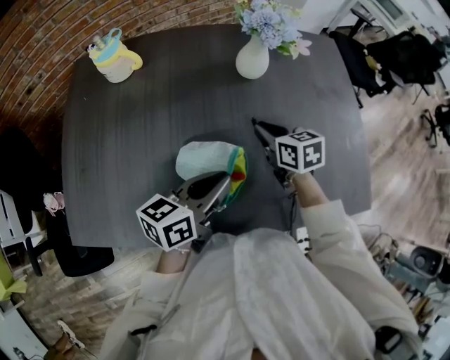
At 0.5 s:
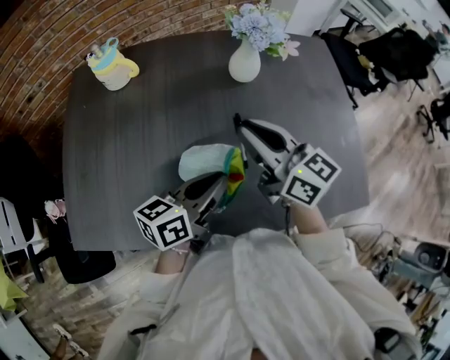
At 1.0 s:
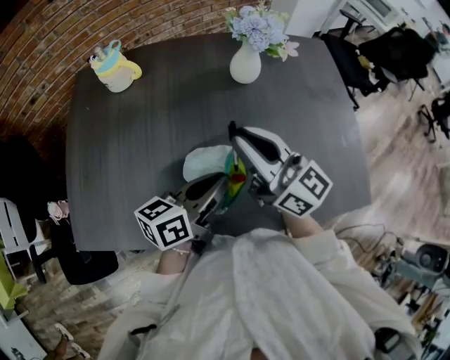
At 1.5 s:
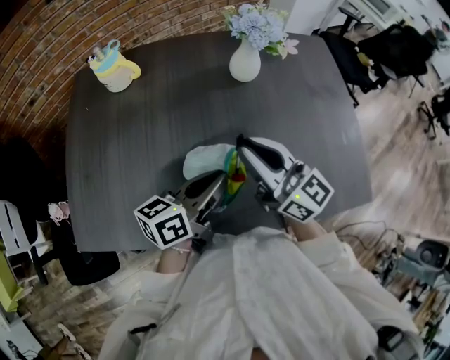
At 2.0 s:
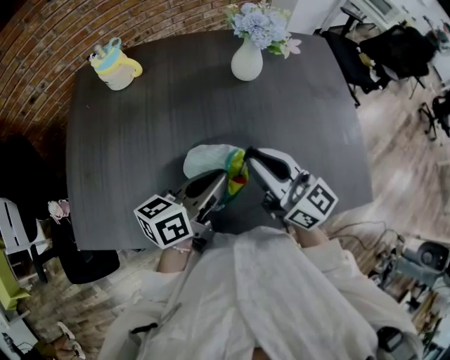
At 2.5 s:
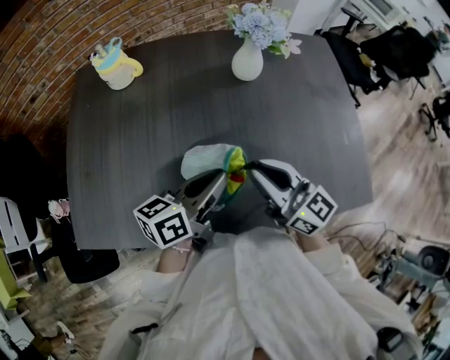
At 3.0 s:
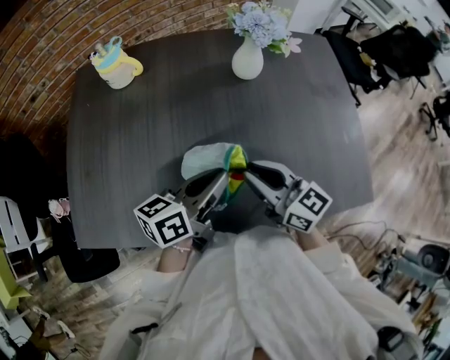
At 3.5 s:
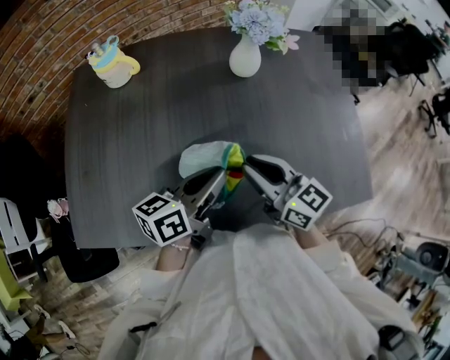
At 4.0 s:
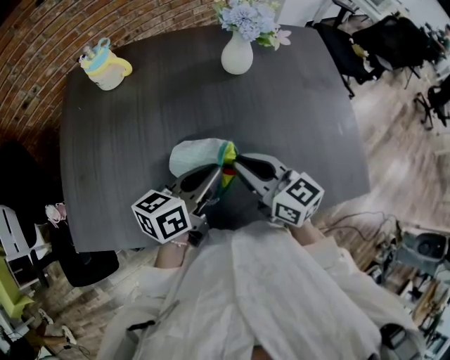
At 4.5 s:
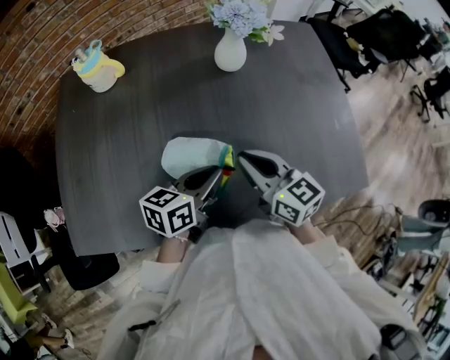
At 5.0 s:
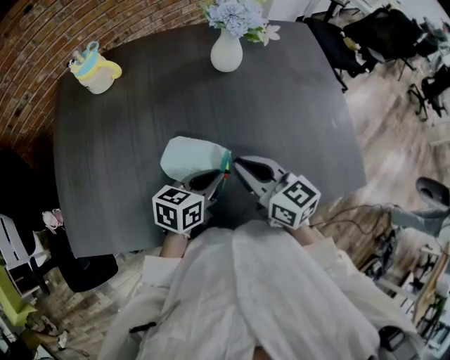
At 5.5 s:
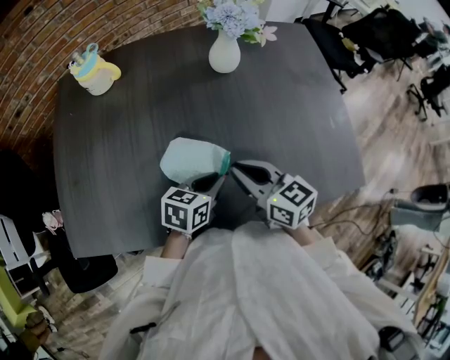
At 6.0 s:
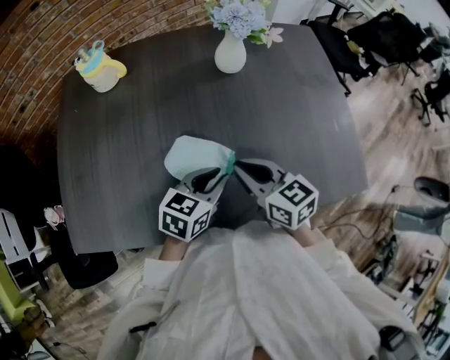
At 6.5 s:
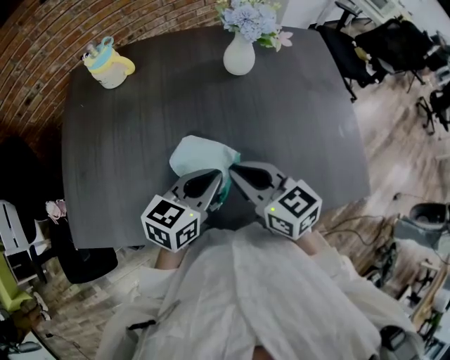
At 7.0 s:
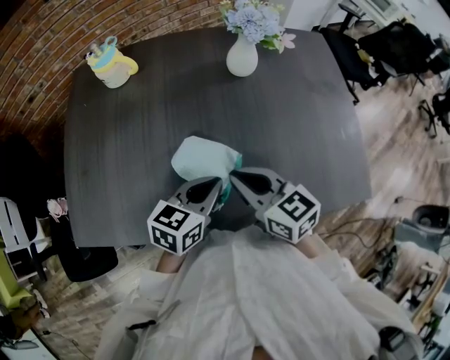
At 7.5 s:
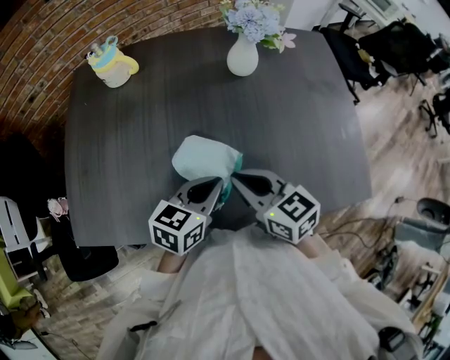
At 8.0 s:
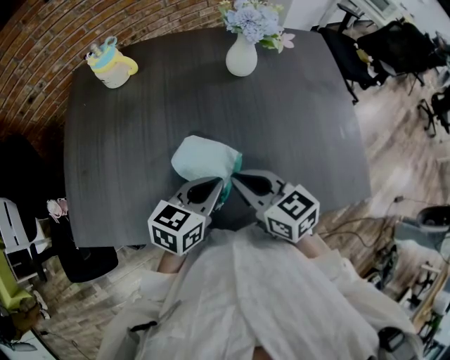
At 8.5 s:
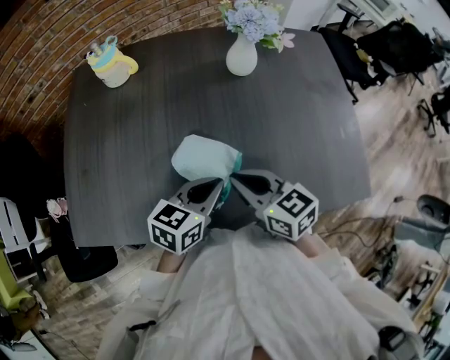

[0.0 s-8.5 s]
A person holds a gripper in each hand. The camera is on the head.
0.0 to 2.0 s: The right gripper heads upward and backward, covering roughly 20 cm, and angles its fingers upward, by roughly 40 degrees.
2.0 to 4.0 s: The right gripper heads downward, covering roughly 5 cm.
4.0 to 6.5 s: The left gripper reaches approximately 10 cm downward, then returns, and turns by roughly 20 degrees.
6.5 to 8.5 s: The grippers stay close to where they were, moving slightly.

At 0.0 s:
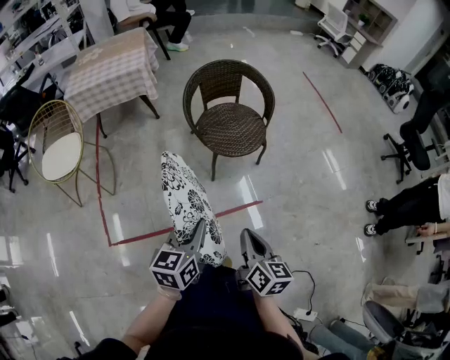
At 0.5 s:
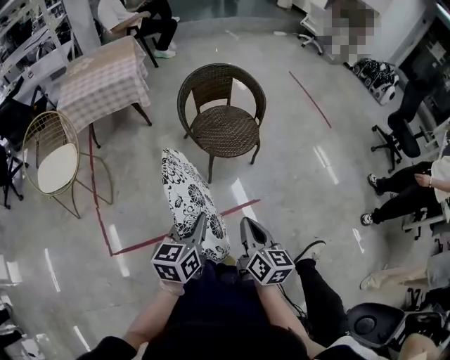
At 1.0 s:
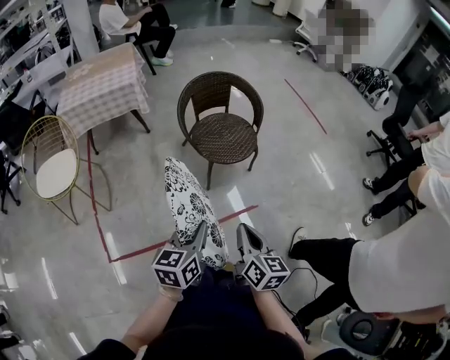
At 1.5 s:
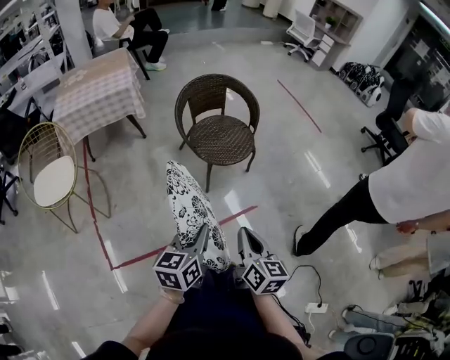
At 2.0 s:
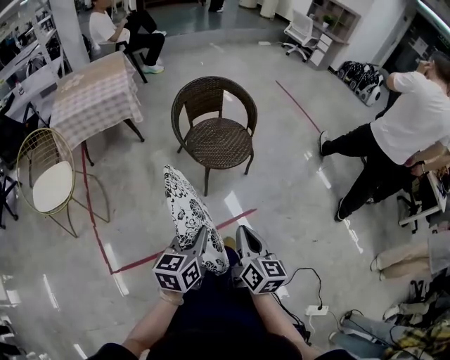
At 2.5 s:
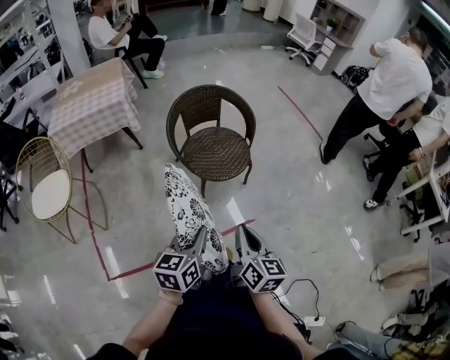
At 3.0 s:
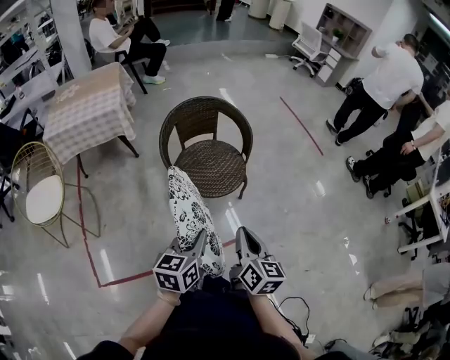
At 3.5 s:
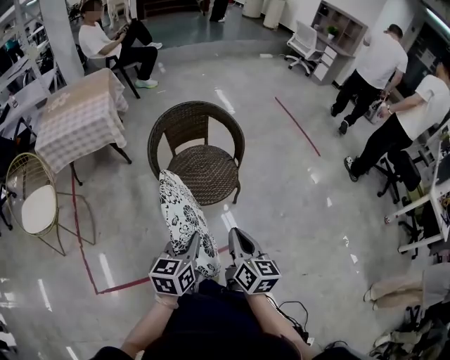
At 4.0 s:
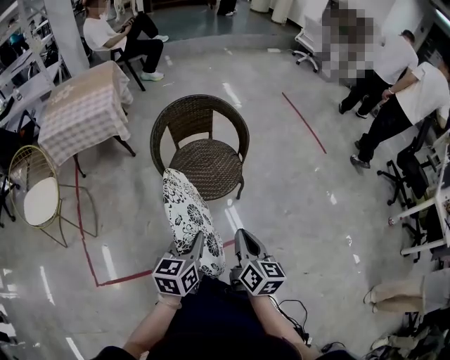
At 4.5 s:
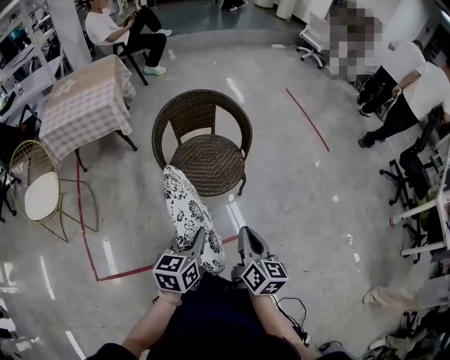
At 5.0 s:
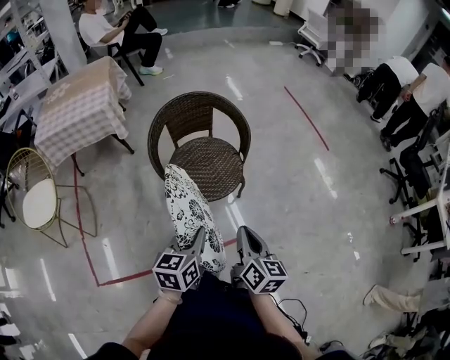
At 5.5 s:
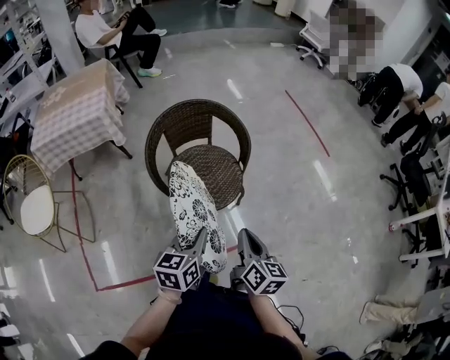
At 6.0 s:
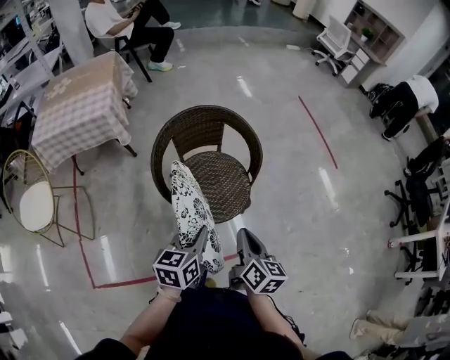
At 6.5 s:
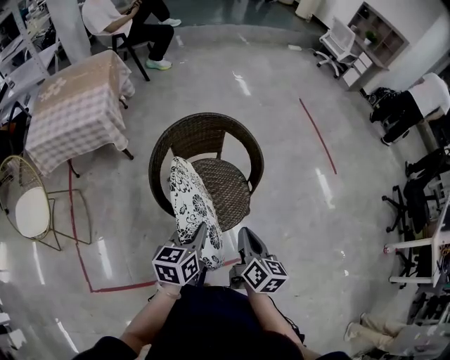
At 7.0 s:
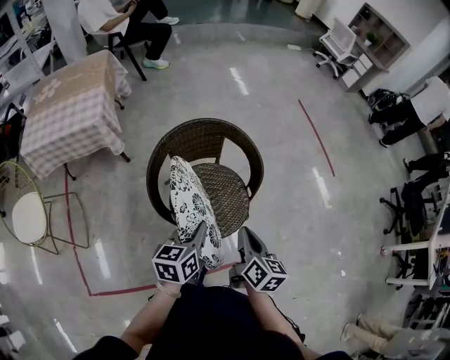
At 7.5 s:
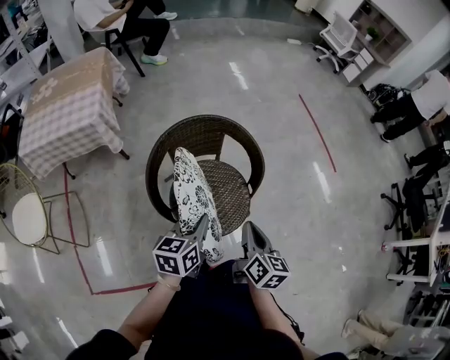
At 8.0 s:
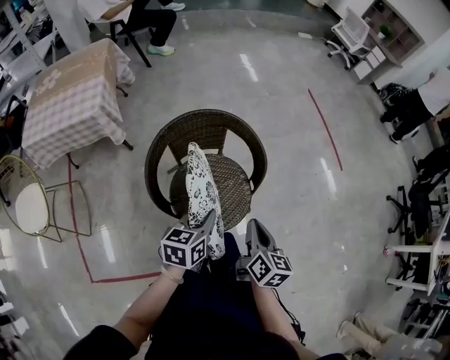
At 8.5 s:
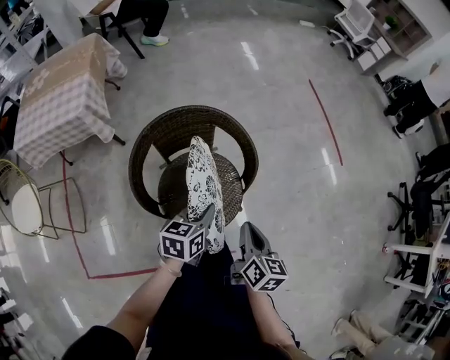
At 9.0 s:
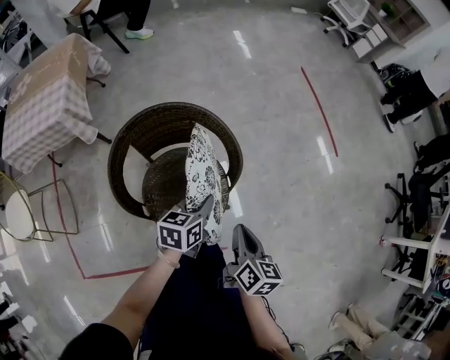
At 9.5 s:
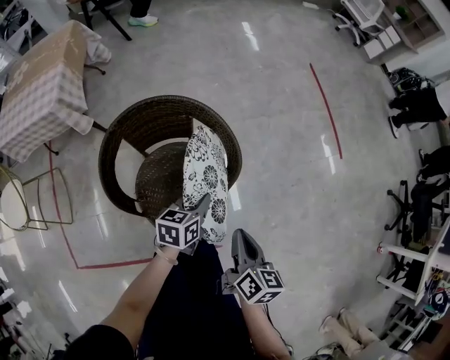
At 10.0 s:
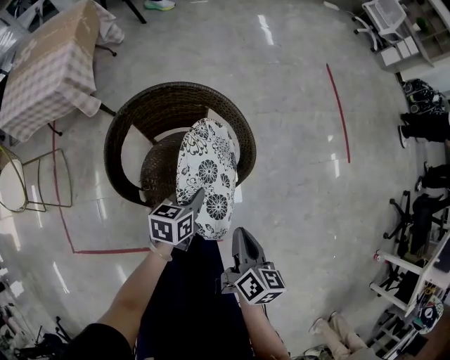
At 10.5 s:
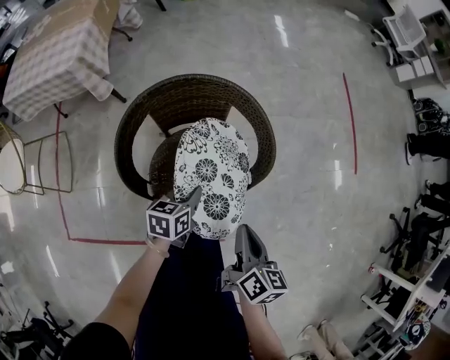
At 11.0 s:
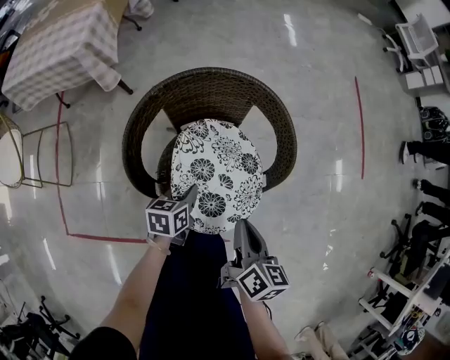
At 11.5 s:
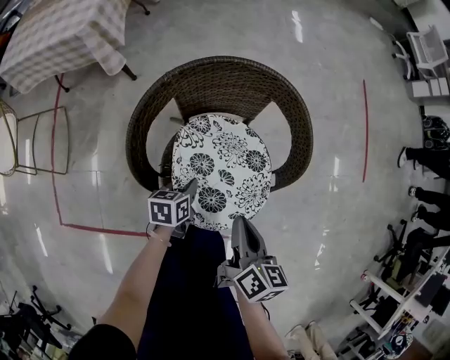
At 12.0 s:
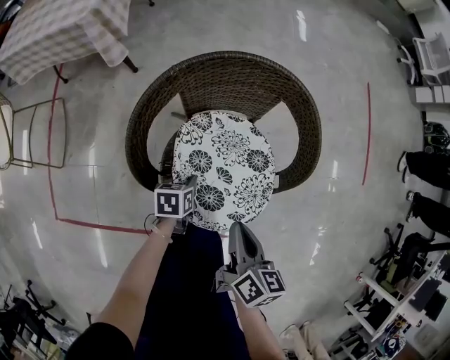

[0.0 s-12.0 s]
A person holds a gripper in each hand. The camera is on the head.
0.0 to 2.0 s: The grippers stay close to where they were, moving slightly.
2.0 to 4.0 s: Both grippers move forward and to the right, roughly 20 cm.
4.0 to 6.0 s: The grippers both shift forward by approximately 15 cm.
6.0 to 8.0 s: Both grippers travel together forward, some 15 cm.
8.0 to 10.0 s: The left gripper is displaced downward and forward by roughly 15 cm. The right gripper is displaced downward and to the right by approximately 10 cm.
10.0 to 12.0 s: The right gripper goes about 20 cm to the left and downward; the left gripper travels downward and to the left by approximately 25 cm, and swivels some 20 degrees.

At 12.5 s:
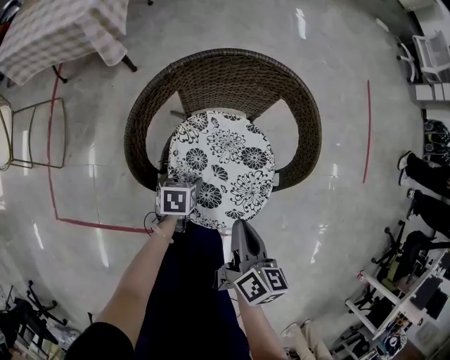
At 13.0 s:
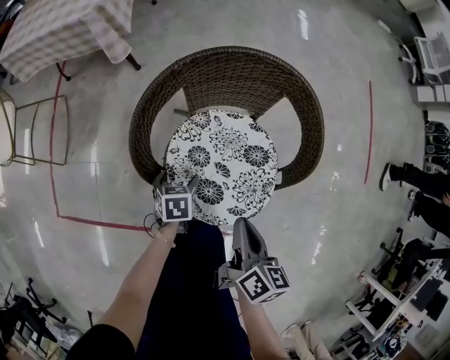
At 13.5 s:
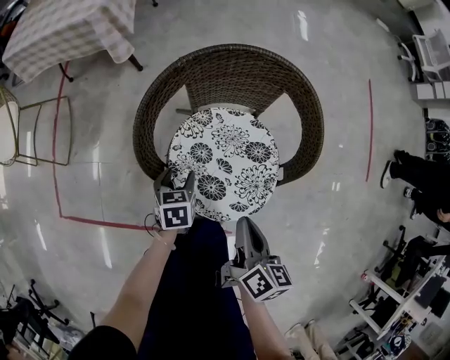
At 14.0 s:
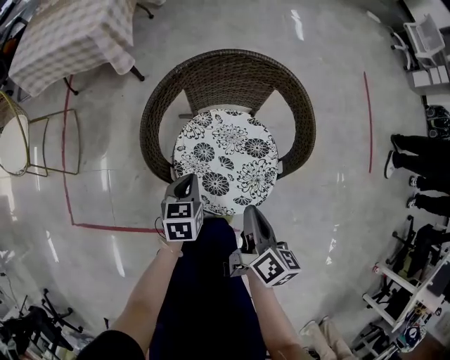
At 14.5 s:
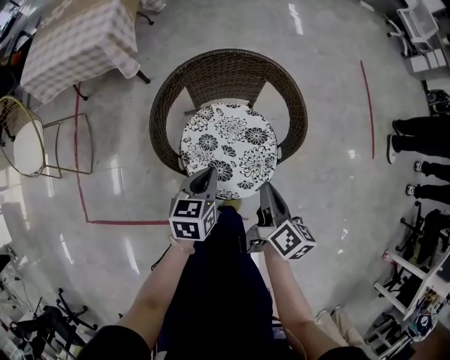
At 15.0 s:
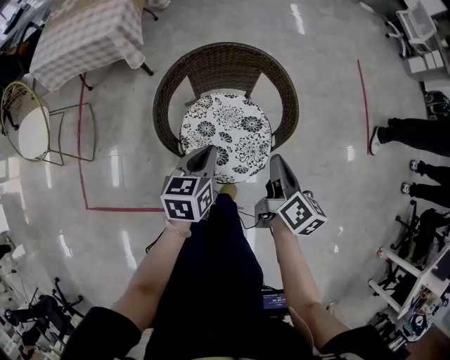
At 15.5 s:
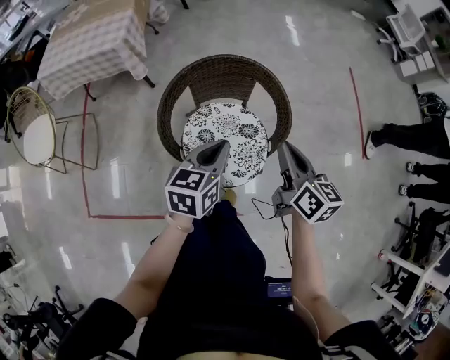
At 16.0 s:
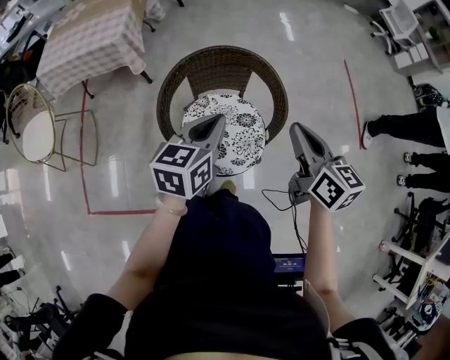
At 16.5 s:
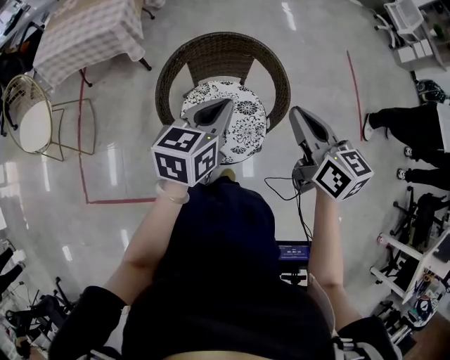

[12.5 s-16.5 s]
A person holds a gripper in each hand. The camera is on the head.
12.5 to 14.5 s: The left gripper travels upward by approximately 25 cm, swivels roughly 30 degrees, and closes its fingers, while the right gripper goes approximately 10 cm upward and to the right.
14.5 to 16.5 s: The grippers both shift upward by some 20 cm. The right gripper turns by about 40 degrees.

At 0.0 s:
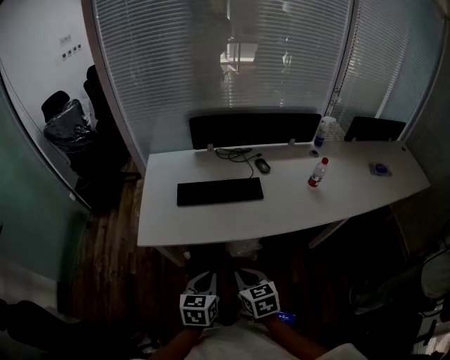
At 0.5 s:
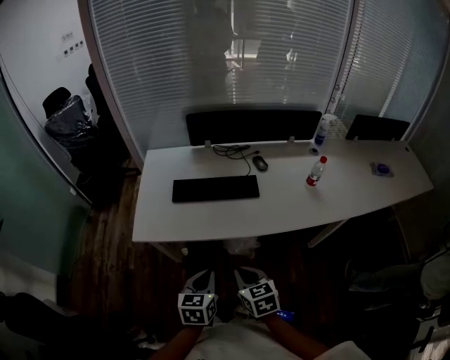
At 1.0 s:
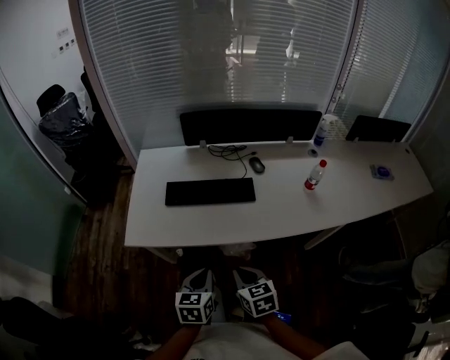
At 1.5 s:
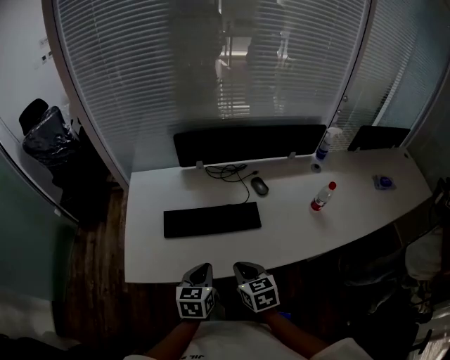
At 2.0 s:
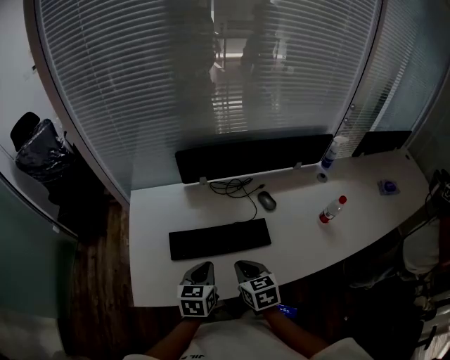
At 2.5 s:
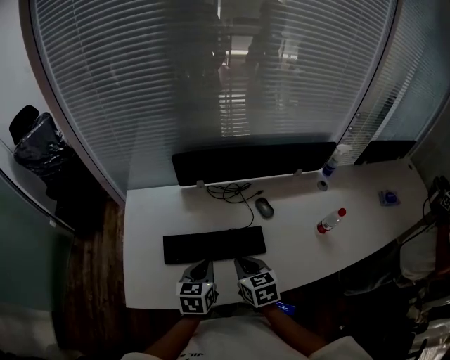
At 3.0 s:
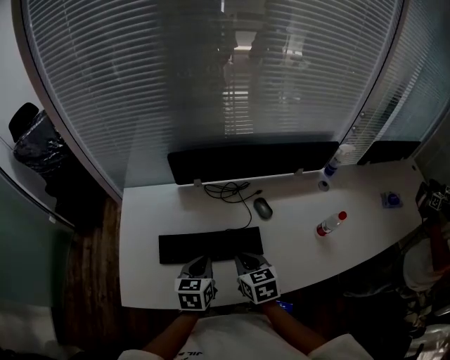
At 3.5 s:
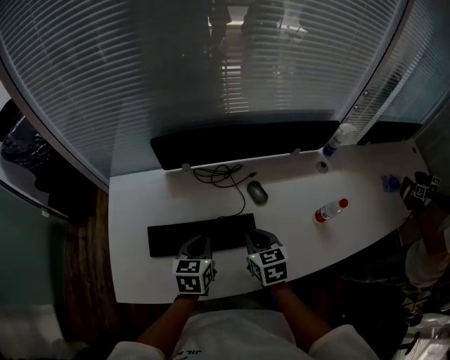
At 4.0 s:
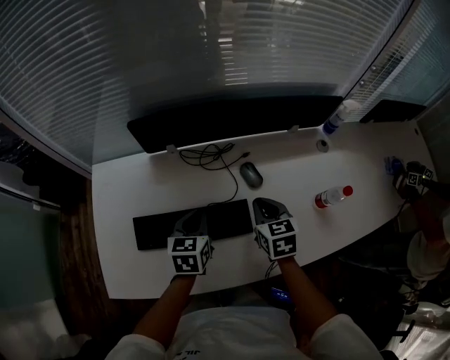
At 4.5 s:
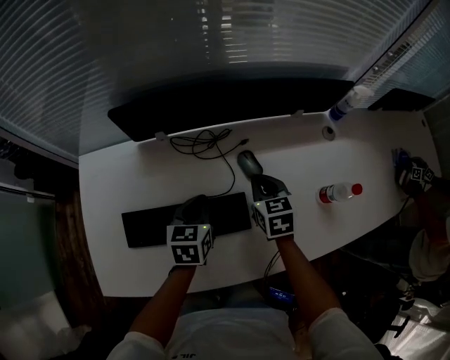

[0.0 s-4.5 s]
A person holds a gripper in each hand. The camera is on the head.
0.0 to 2.0 s: The grippers both shift forward by about 30 cm.
2.0 to 4.5 s: The right gripper is displaced forward and to the right by about 30 cm, while the left gripper shifts about 25 cm forward, to the right and downward.
